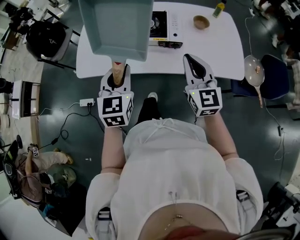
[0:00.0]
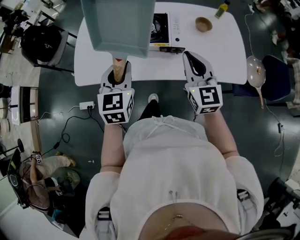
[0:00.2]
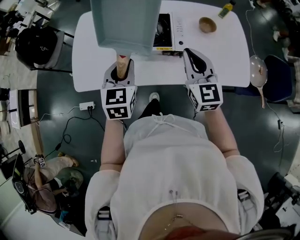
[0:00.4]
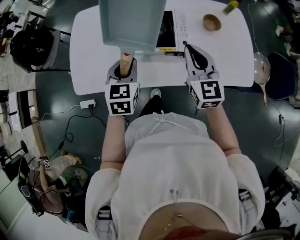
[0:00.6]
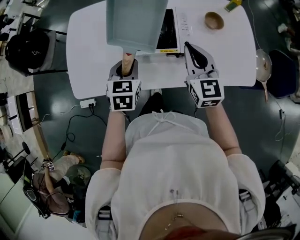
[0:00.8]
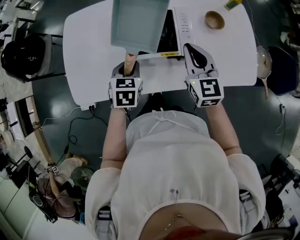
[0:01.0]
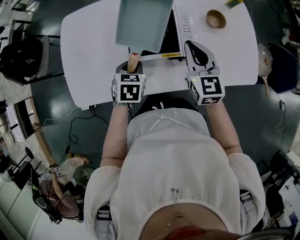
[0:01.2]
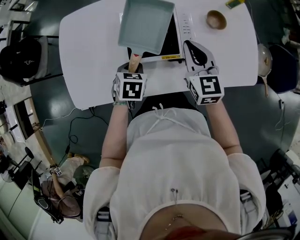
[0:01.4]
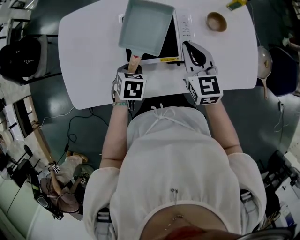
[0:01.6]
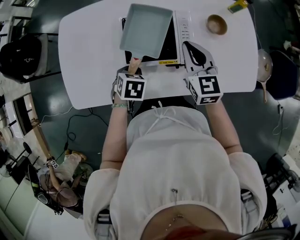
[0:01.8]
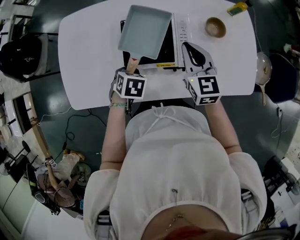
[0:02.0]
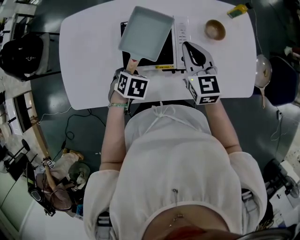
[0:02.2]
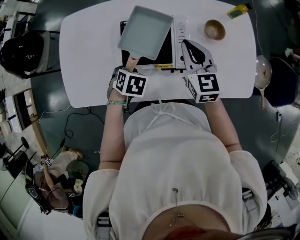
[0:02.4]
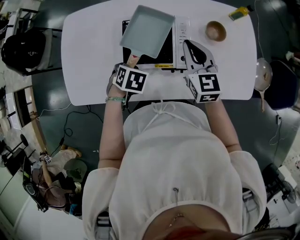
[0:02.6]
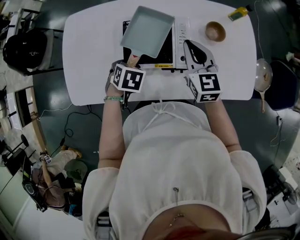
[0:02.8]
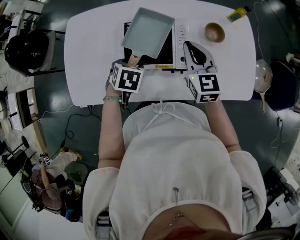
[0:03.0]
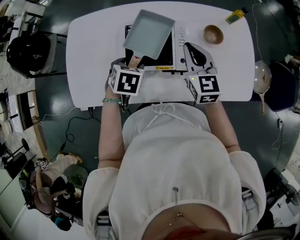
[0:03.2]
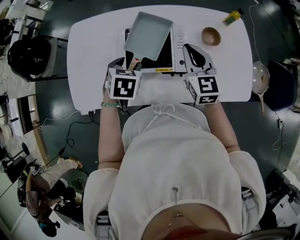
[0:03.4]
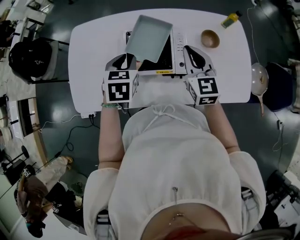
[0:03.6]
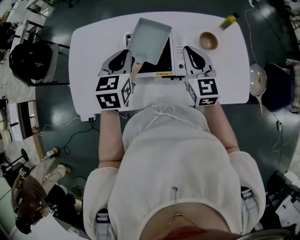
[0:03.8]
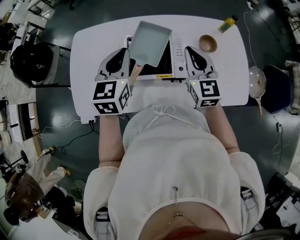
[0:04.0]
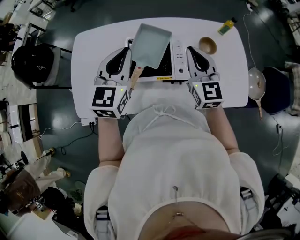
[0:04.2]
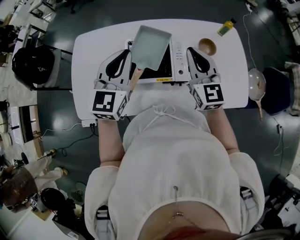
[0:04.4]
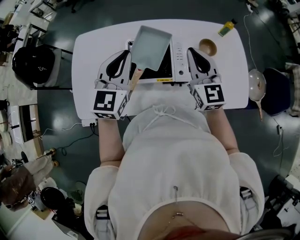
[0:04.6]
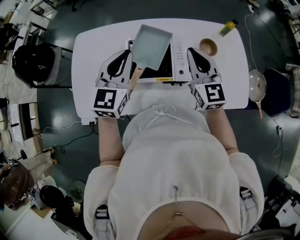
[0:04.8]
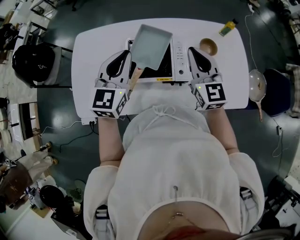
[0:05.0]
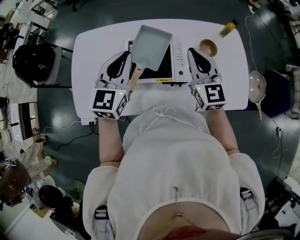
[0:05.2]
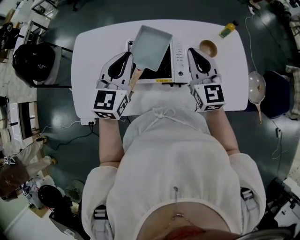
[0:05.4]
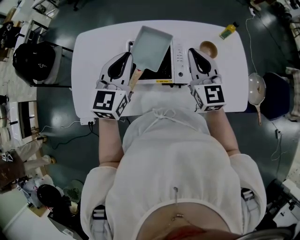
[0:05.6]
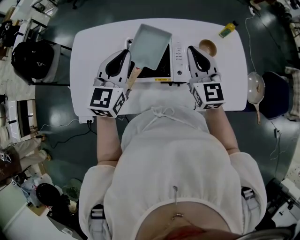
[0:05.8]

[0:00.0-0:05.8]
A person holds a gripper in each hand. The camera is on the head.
0:00.0 to 0:01.4: Both grippers move forward and downward, about 30 cm. The left gripper tips its fingers downward by roughly 40 degrees.
0:01.4 to 0:02.8: The left gripper opens. Meanwhile the right gripper changes place by roughly 5 cm.
0:02.8 to 0:04.4: The left gripper shifts some 25 cm upward, tilts its fingers approximately 60 degrees upward, and closes its fingers; the right gripper heads upward, covering some 10 cm.
0:04.4 to 0:05.8: The grippers move only a little.

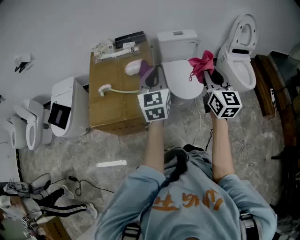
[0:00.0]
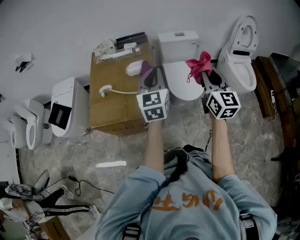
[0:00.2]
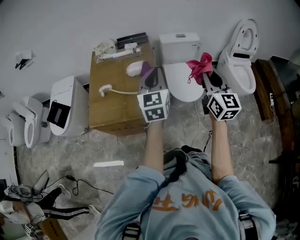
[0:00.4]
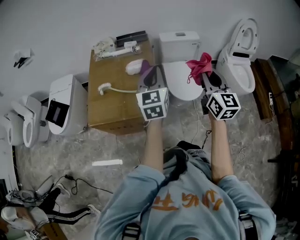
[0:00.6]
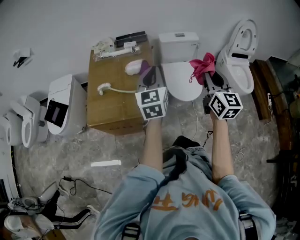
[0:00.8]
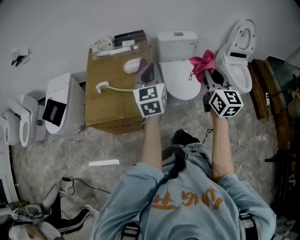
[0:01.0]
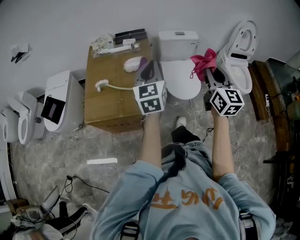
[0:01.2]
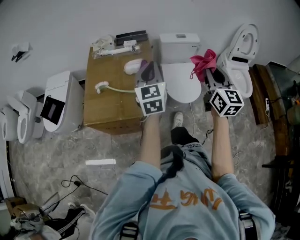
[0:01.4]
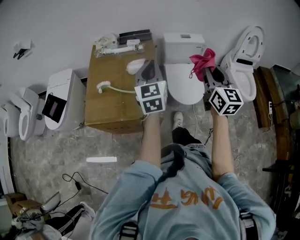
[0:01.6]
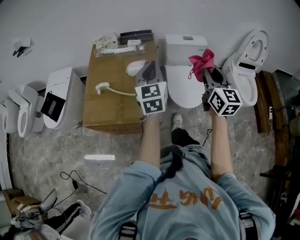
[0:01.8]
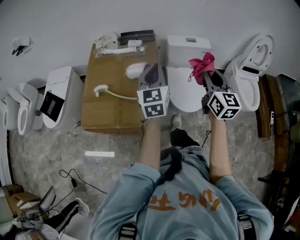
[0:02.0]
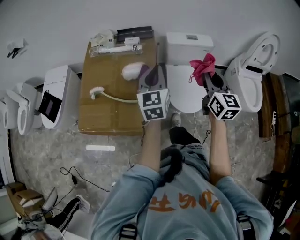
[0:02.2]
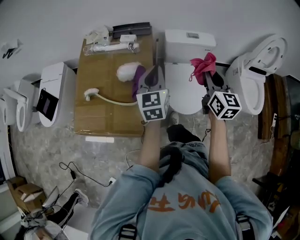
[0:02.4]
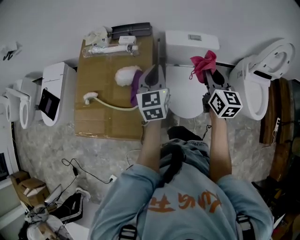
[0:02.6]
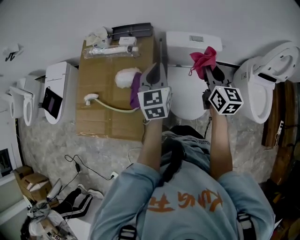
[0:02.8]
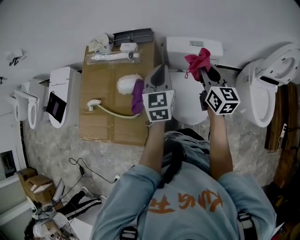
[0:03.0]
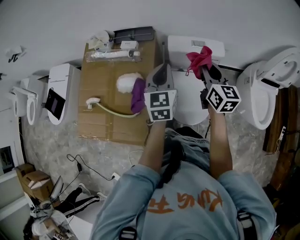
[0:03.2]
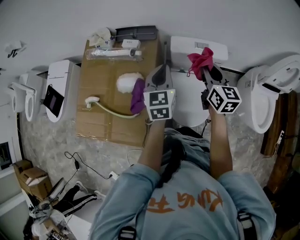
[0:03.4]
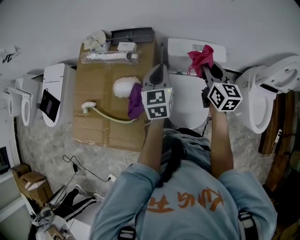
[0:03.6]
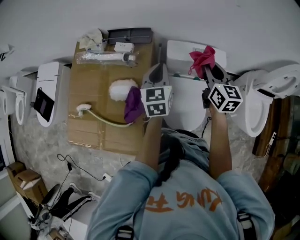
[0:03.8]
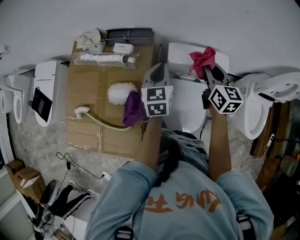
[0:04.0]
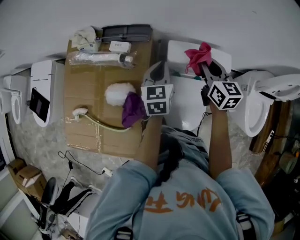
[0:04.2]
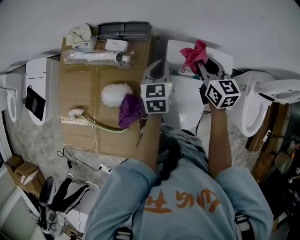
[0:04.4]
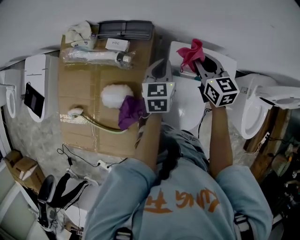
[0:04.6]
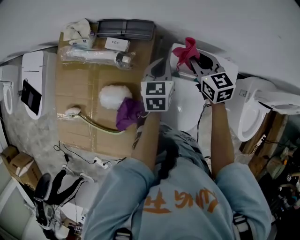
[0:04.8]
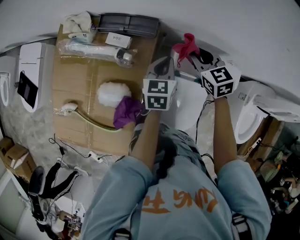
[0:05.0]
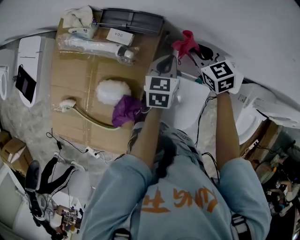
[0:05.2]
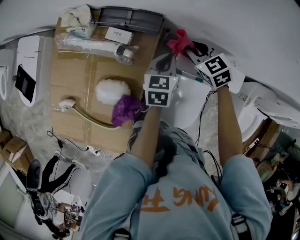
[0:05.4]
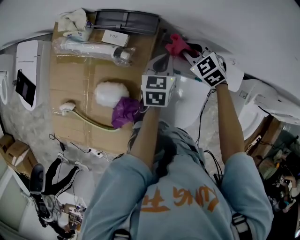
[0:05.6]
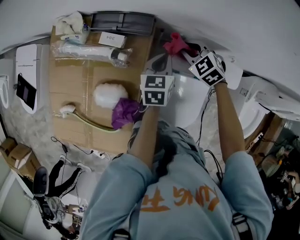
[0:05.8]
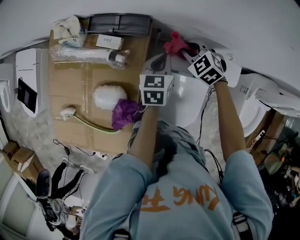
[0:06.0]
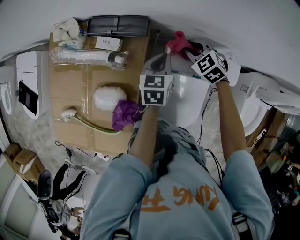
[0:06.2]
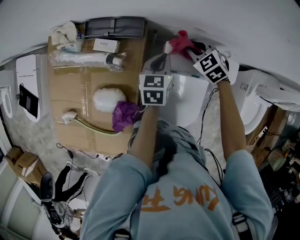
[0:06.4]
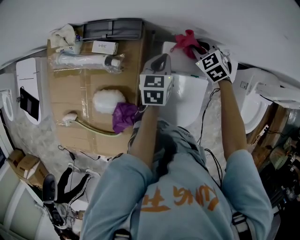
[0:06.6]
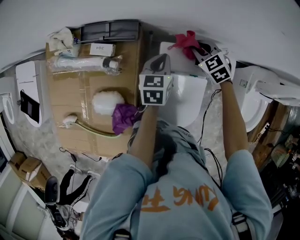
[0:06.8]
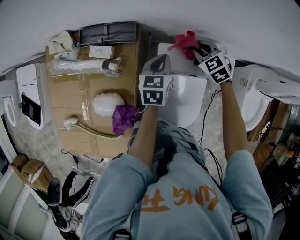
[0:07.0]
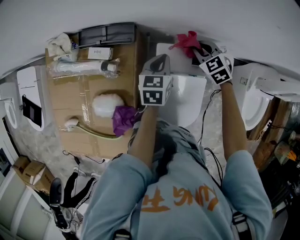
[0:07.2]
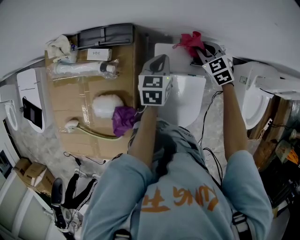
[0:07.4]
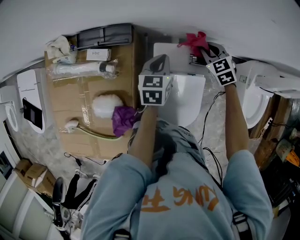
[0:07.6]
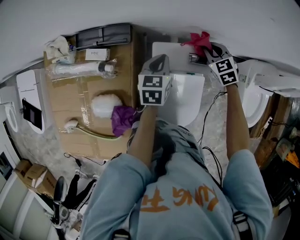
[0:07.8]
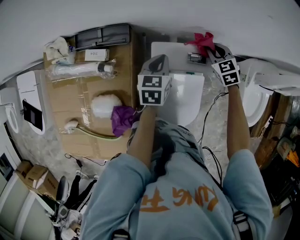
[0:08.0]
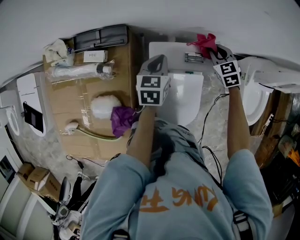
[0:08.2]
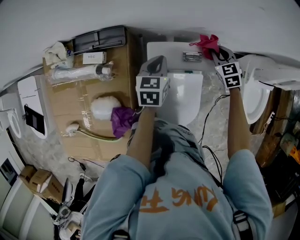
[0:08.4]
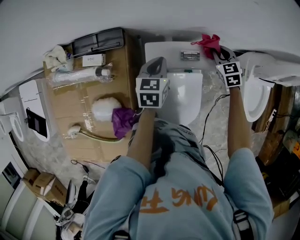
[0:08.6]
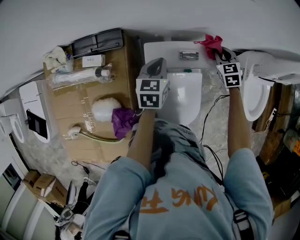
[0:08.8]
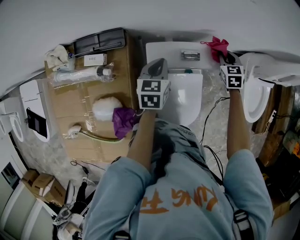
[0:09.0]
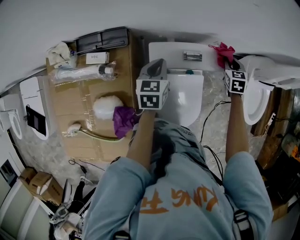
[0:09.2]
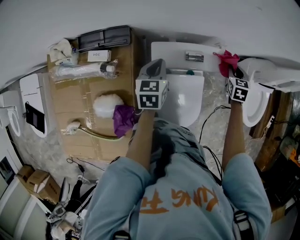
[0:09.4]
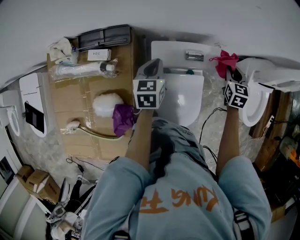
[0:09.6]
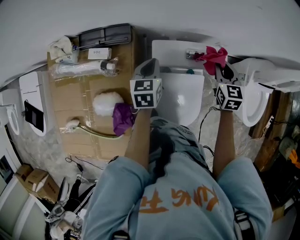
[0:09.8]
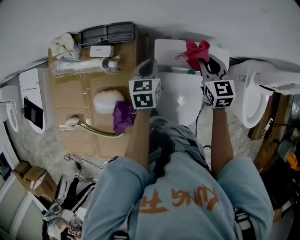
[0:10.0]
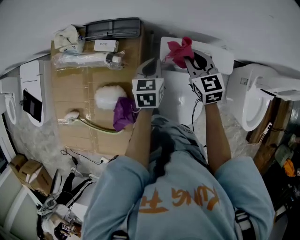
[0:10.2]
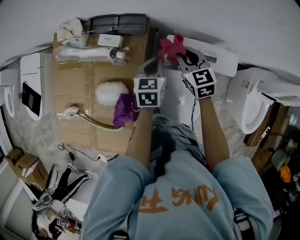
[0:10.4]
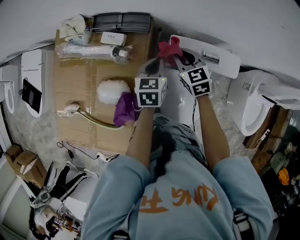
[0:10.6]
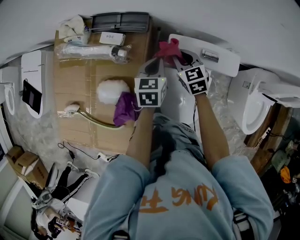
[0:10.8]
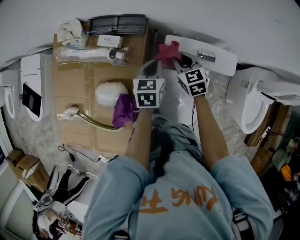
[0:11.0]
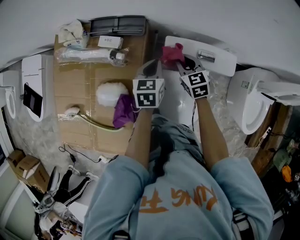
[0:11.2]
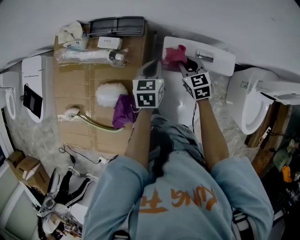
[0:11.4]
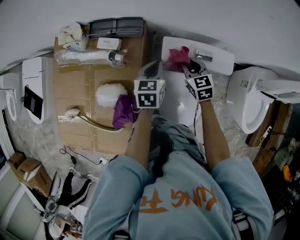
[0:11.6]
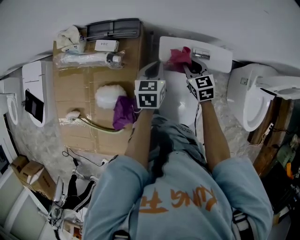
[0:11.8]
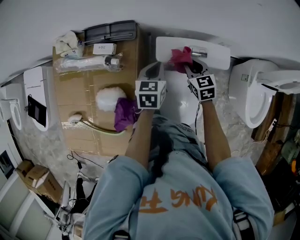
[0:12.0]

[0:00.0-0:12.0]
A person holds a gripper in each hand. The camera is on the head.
0:00.0 to 0:01.6: Both grippers travel together forward, some 5 cm.
0:01.6 to 0:03.0: The left gripper moves forward and to the right, some 35 cm. Meanwhile the right gripper travels forward by some 35 cm, and swivels about 20 degrees.
0:03.0 to 0:04.4: Both grippers travel together forward and downward, roughly 25 cm.
0:04.4 to 0:06.0: The right gripper goes approximately 20 cm downward and forward, and swivels some 60 degrees. The left gripper shifts roughly 10 cm downward and forward.
0:06.0 to 0:07.6: The left gripper moves to the right, approximately 5 cm; the right gripper is displaced to the right by about 15 cm, and swivels about 20 degrees.
0:07.6 to 0:09.0: The right gripper moves to the right, approximately 15 cm, and rotates roughly 30 degrees.
0:09.0 to 0:10.4: The right gripper moves roughly 30 cm, and turns by some 30 degrees; the left gripper changes place by some 10 cm.
0:10.4 to 0:12.0: The right gripper shifts about 10 cm to the right, downward and backward.

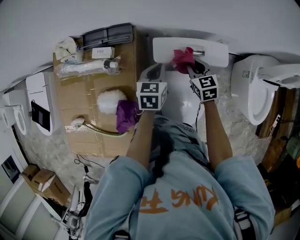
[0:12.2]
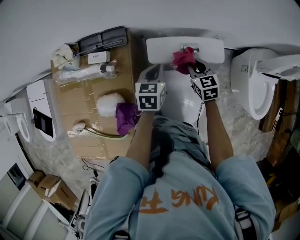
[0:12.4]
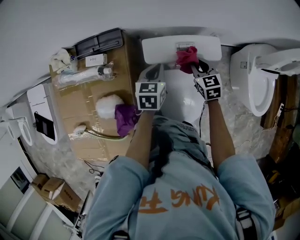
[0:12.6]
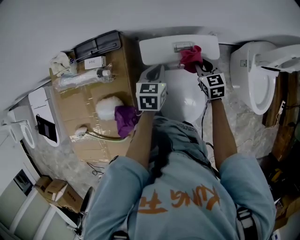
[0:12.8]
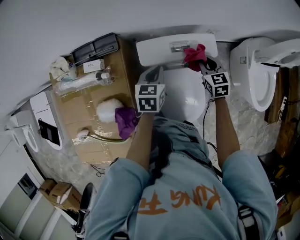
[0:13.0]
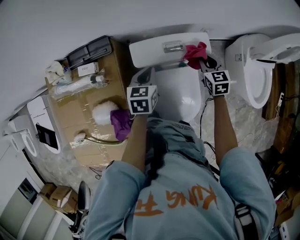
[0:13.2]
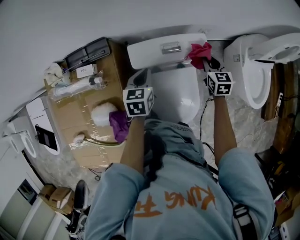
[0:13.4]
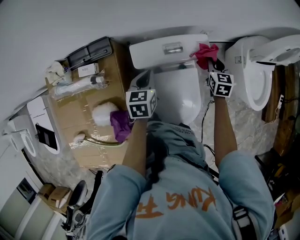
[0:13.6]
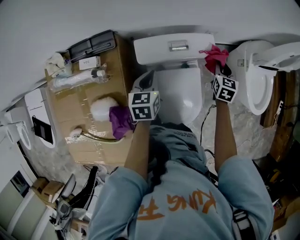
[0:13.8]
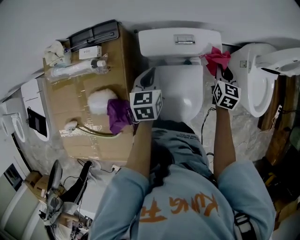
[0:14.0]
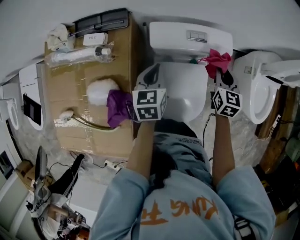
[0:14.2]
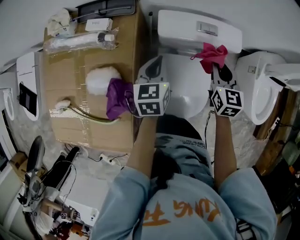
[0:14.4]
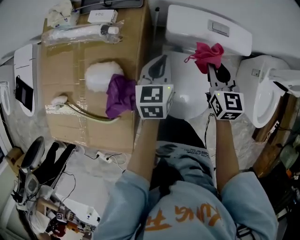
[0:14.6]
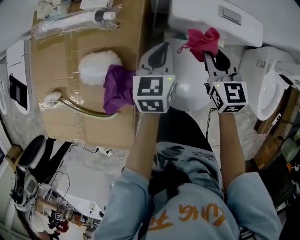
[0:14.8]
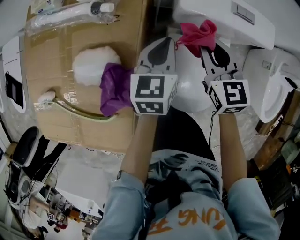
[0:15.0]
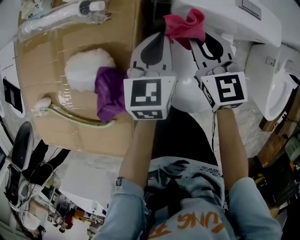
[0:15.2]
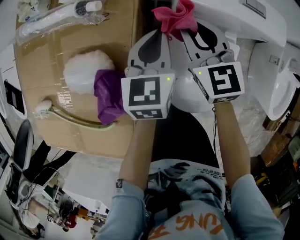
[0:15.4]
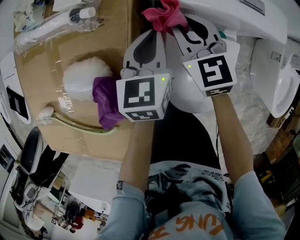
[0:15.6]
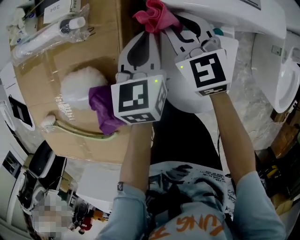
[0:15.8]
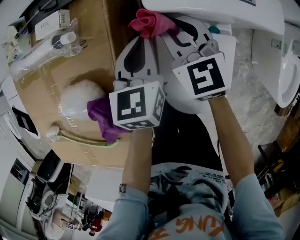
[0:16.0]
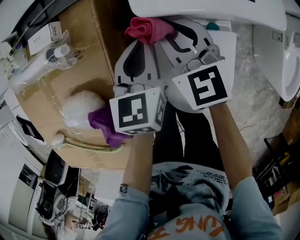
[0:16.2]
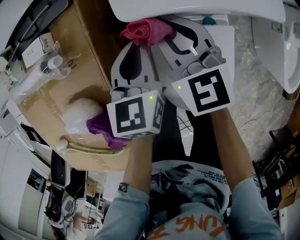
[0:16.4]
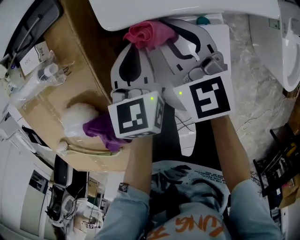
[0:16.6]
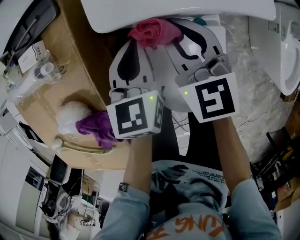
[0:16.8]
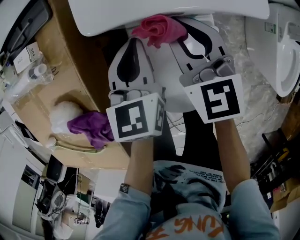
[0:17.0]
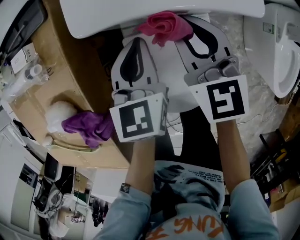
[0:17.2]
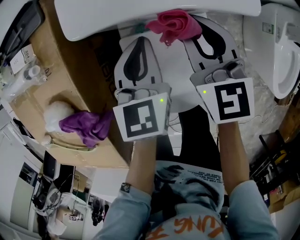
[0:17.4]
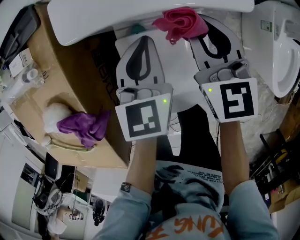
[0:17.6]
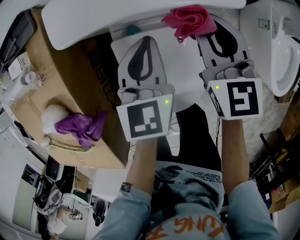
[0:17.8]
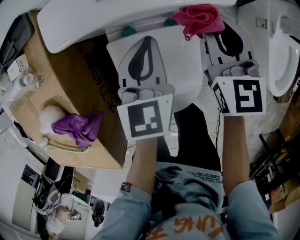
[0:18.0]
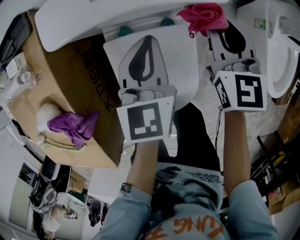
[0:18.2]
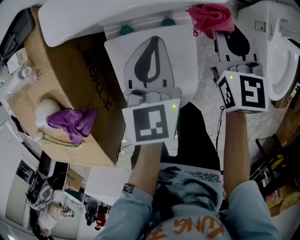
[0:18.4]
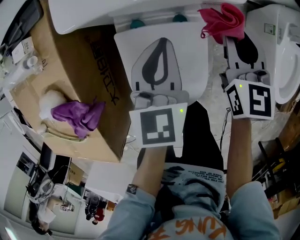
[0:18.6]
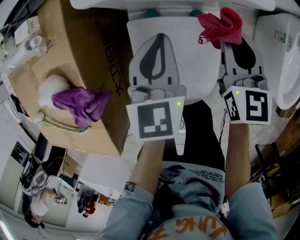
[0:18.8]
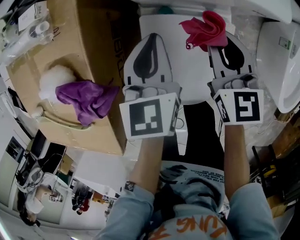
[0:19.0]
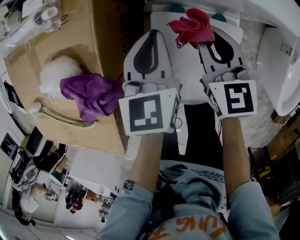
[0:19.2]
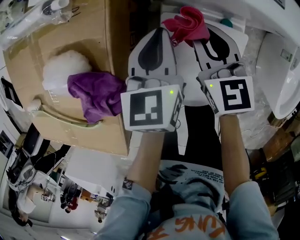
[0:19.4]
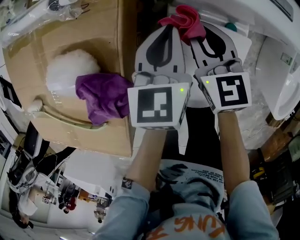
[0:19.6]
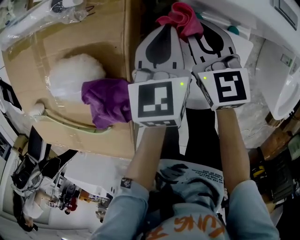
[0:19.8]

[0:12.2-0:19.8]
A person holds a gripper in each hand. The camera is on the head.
0:12.2 to 0:13.8: The right gripper travels to the right by about 25 cm, and changes its angle by roughly 30 degrees.
0:13.8 to 0:15.2: The left gripper ends up approximately 15 cm from where it was, while the right gripper moves some 35 cm, and rotates roughly 40 degrees.
0:15.2 to 0:16.8: Both grippers move to the right, roughly 10 cm.
0:16.8 to 0:18.2: Both grippers travel together to the right, approximately 20 cm.
0:18.2 to 0:19.8: The left gripper goes left and right, about 15 cm each way, reversing 2 times; the right gripper is displaced to the left by approximately 20 cm, and turns by roughly 20 degrees.
